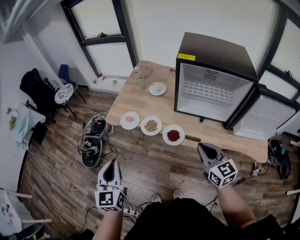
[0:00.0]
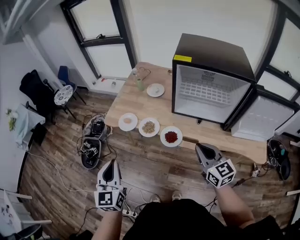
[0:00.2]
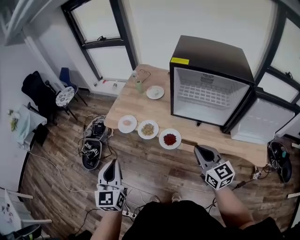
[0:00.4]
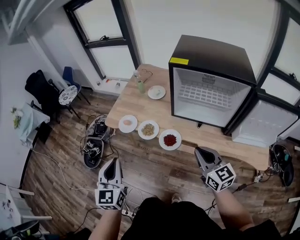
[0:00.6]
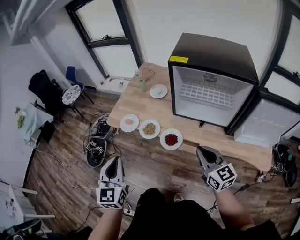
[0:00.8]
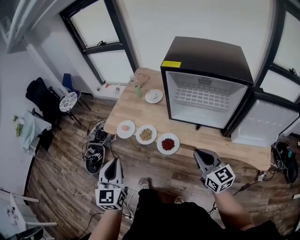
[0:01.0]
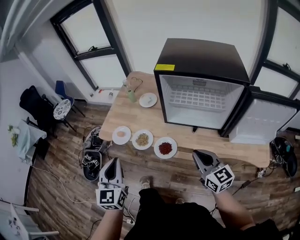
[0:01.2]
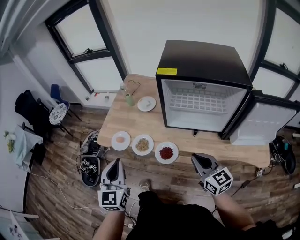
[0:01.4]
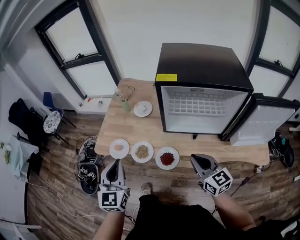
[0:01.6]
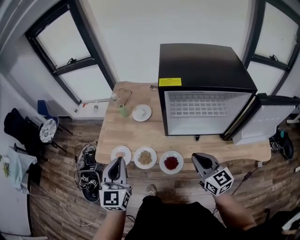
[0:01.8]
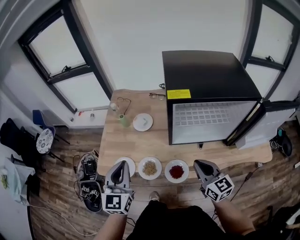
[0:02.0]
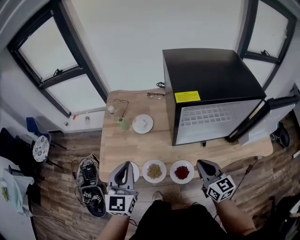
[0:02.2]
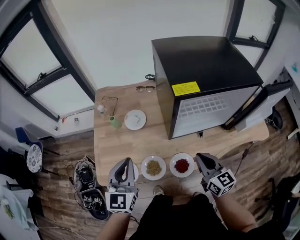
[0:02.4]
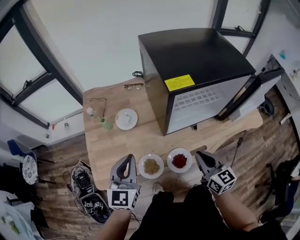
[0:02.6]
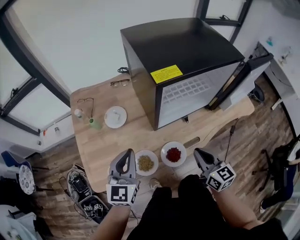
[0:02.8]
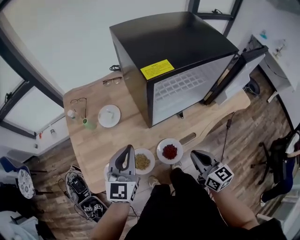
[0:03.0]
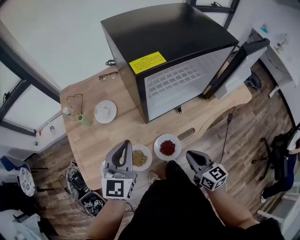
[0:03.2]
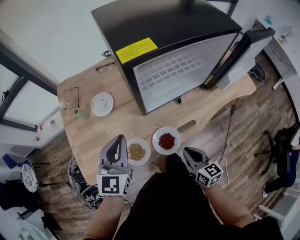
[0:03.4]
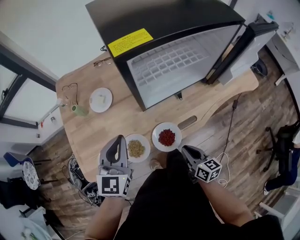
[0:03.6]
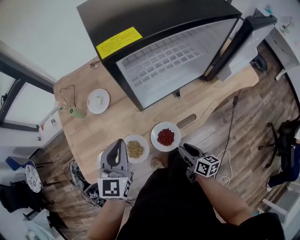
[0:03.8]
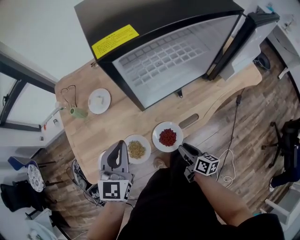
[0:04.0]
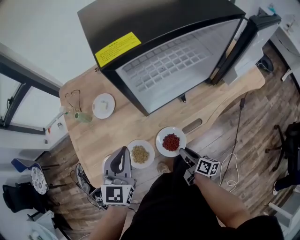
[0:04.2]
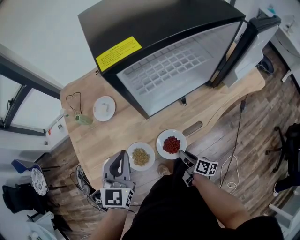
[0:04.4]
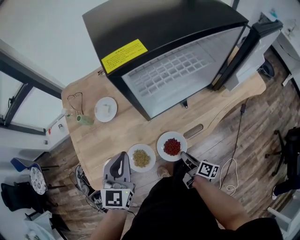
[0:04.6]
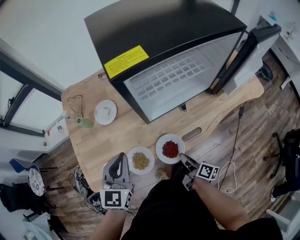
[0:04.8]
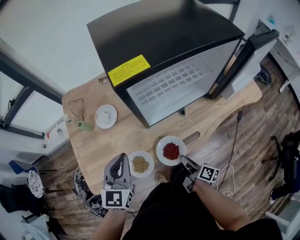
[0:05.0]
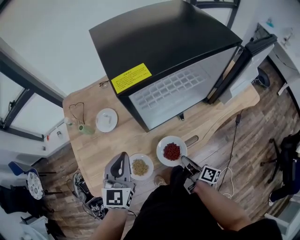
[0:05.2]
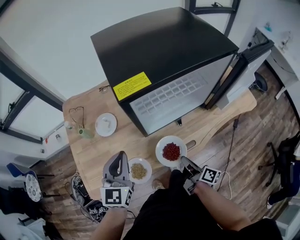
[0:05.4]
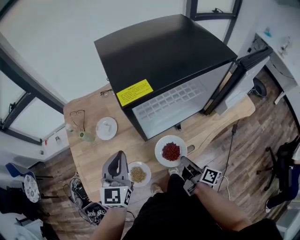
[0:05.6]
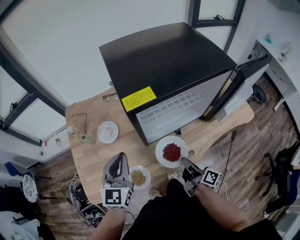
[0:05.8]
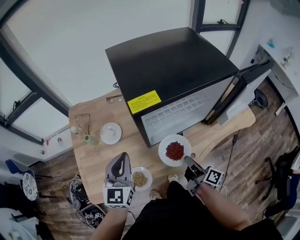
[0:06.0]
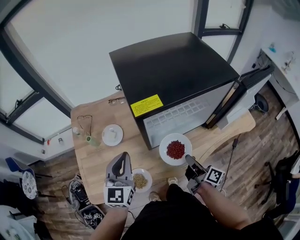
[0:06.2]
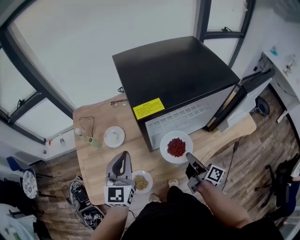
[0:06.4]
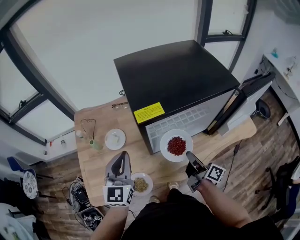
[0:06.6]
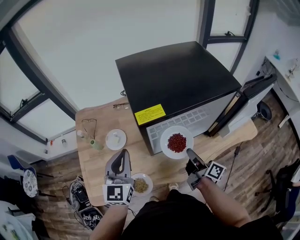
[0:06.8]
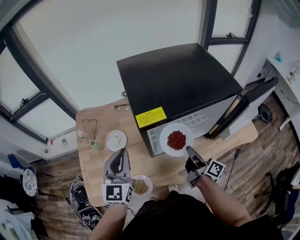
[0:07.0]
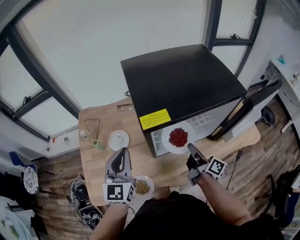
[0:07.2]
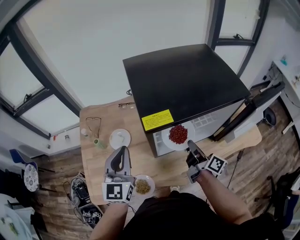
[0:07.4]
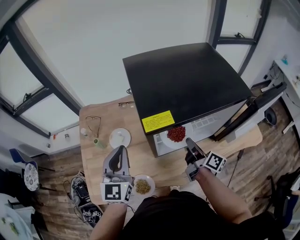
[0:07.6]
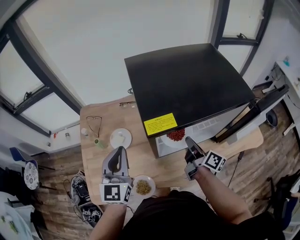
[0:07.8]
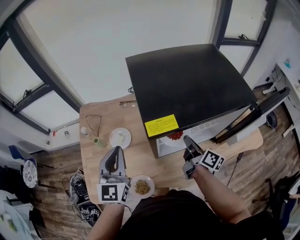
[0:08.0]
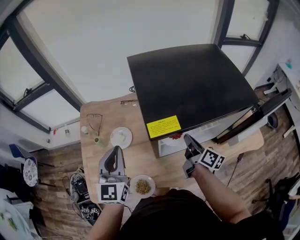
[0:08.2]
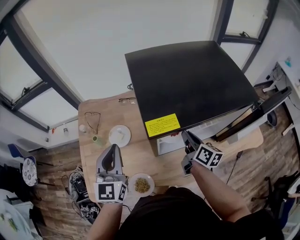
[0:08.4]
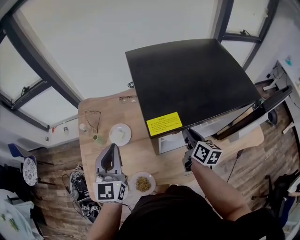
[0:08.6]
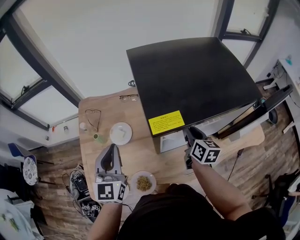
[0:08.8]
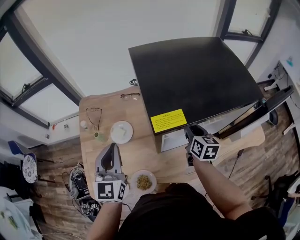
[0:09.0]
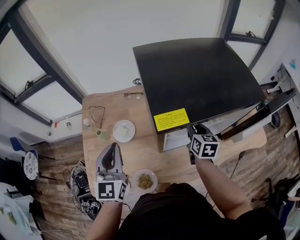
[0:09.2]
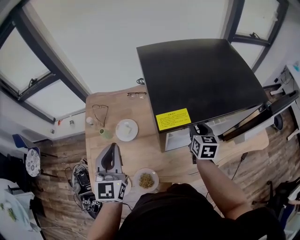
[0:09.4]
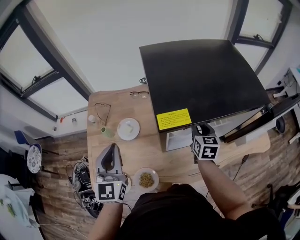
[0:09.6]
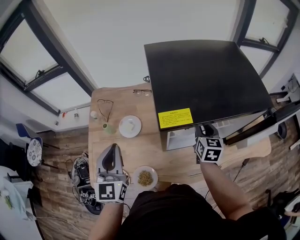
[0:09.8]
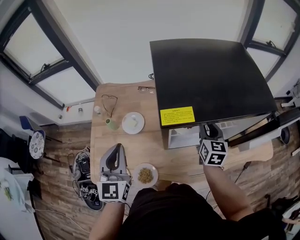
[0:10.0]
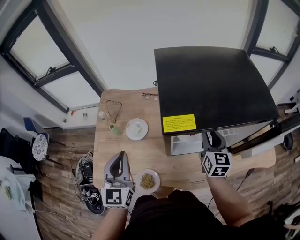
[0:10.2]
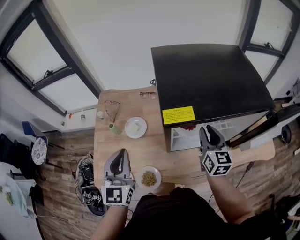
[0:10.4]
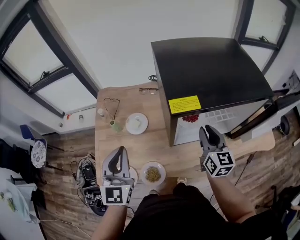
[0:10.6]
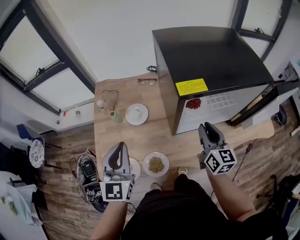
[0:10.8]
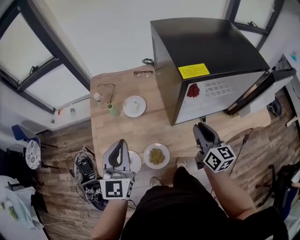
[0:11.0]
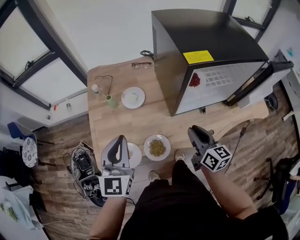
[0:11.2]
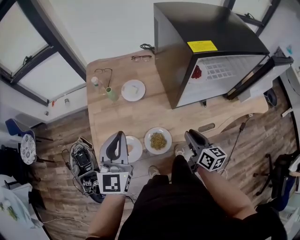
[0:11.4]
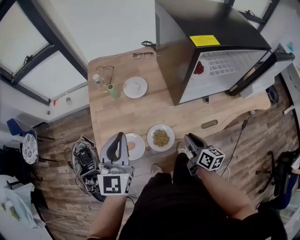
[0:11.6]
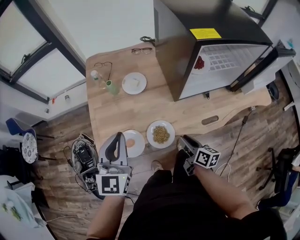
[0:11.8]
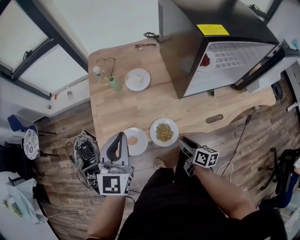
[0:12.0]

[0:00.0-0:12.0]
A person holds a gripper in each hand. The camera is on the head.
0:00.0 to 0:01.6: The right gripper moves forward, about 10 cm. Meanwhile the left gripper goes approximately 20 cm forward and to the right.
0:01.6 to 0:03.0: The right gripper is displaced downward by some 5 cm, and rotates roughly 40 degrees. Meanwhile the left gripper changes place by approximately 20 cm, and changes its angle by roughly 40 degrees.
0:03.0 to 0:04.4: The left gripper heads downward, covering approximately 5 cm. The right gripper is displaced downward by approximately 25 cm, twists some 50 degrees clockwise, seen from behind, and opens.
0:04.4 to 0:06.0: The right gripper moves upward and forward, roughly 20 cm, and closes. The left gripper moves upward and forward, roughly 10 cm.
0:06.0 to 0:07.6: The left gripper is displaced upward and forward by some 10 cm. Meanwhile the right gripper goes about 15 cm forward and upward.
0:07.6 to 0:09.0: The right gripper moves forward, roughly 5 cm, and swivels about 50 degrees.
0:09.0 to 0:10.4: The right gripper is displaced upward by some 5 cm, and changes its angle by some 20 degrees. Meanwhile the left gripper shifts approximately 5 cm backward.
0:10.4 to 0:12.0: The right gripper moves backward, downward and to the left, some 40 cm, and turns by approximately 50 degrees, while the left gripper is displaced backward, to the left and downward by approximately 15 cm.

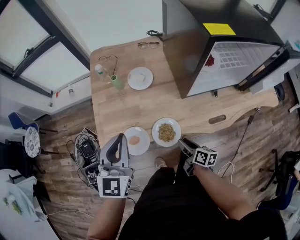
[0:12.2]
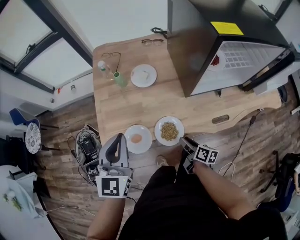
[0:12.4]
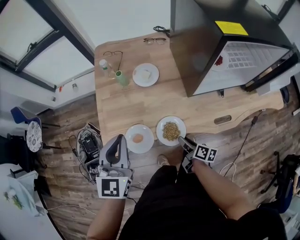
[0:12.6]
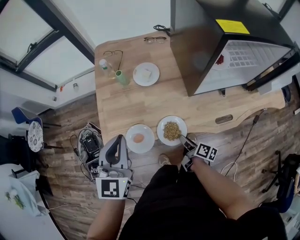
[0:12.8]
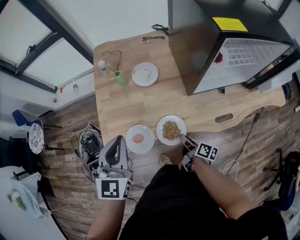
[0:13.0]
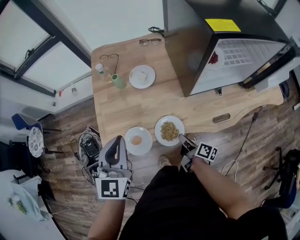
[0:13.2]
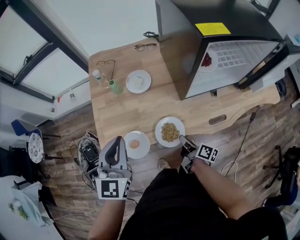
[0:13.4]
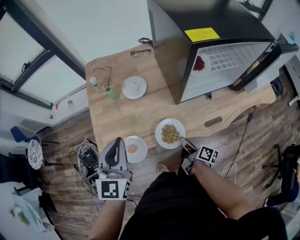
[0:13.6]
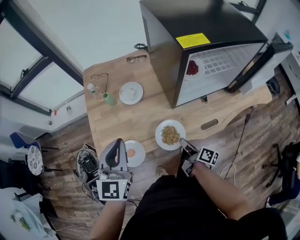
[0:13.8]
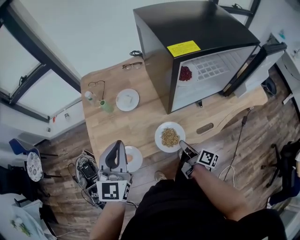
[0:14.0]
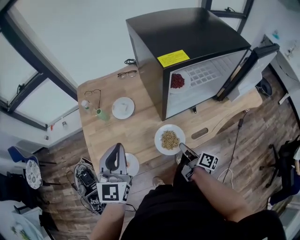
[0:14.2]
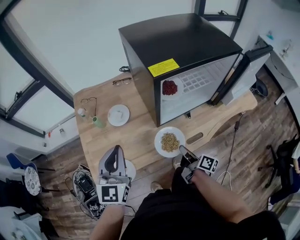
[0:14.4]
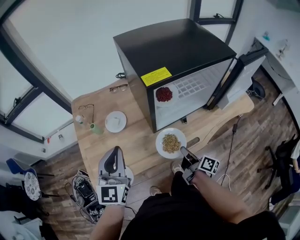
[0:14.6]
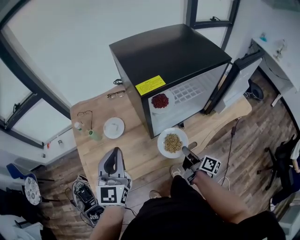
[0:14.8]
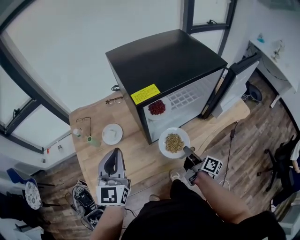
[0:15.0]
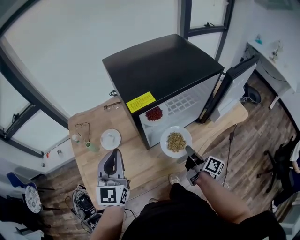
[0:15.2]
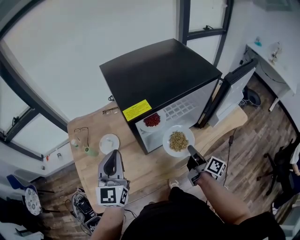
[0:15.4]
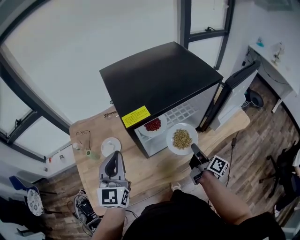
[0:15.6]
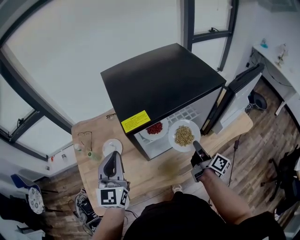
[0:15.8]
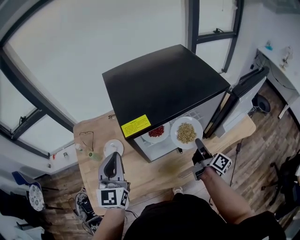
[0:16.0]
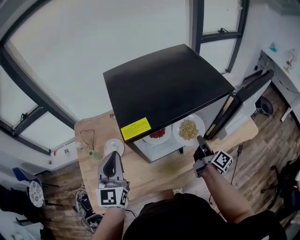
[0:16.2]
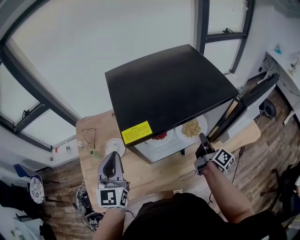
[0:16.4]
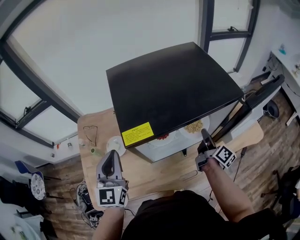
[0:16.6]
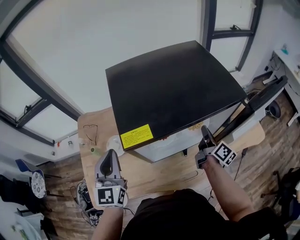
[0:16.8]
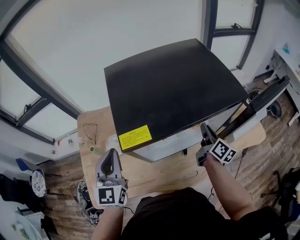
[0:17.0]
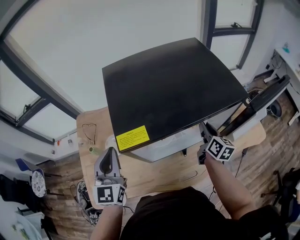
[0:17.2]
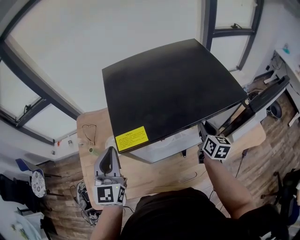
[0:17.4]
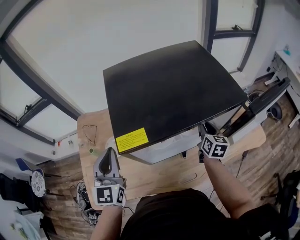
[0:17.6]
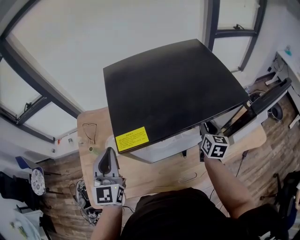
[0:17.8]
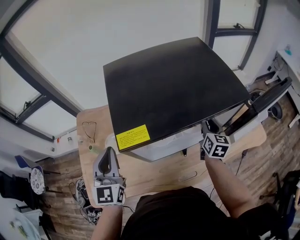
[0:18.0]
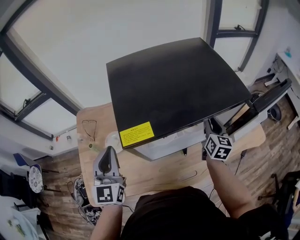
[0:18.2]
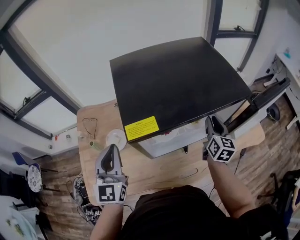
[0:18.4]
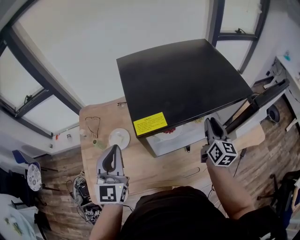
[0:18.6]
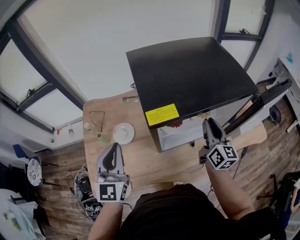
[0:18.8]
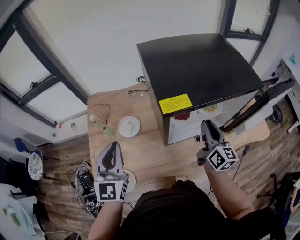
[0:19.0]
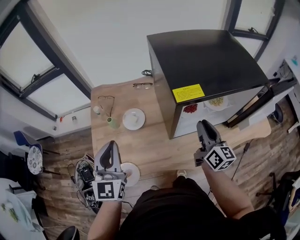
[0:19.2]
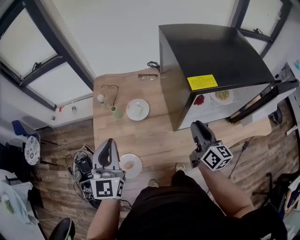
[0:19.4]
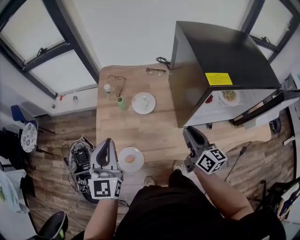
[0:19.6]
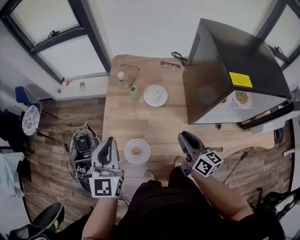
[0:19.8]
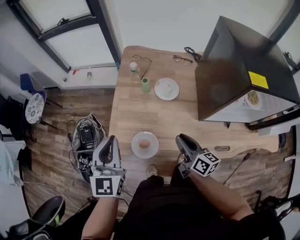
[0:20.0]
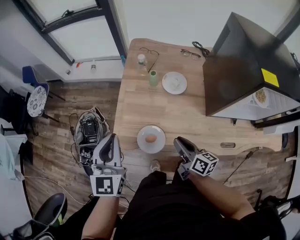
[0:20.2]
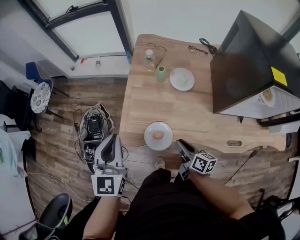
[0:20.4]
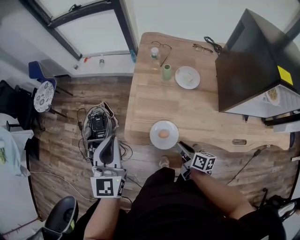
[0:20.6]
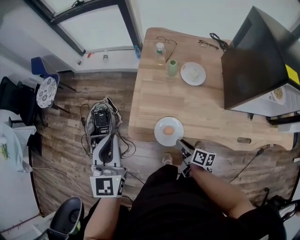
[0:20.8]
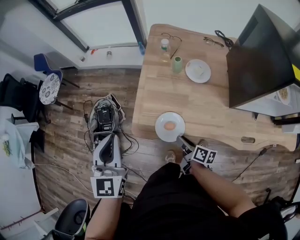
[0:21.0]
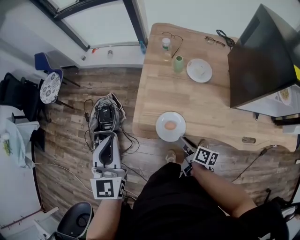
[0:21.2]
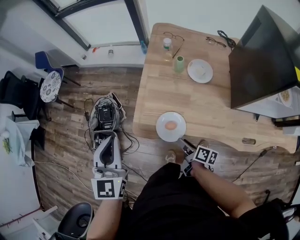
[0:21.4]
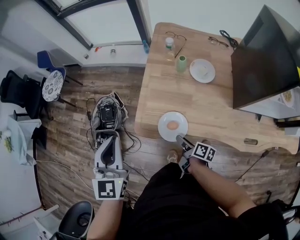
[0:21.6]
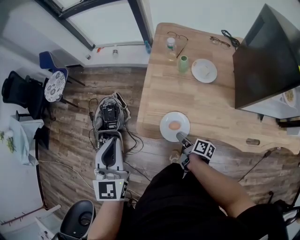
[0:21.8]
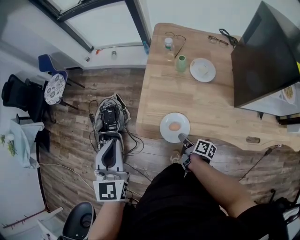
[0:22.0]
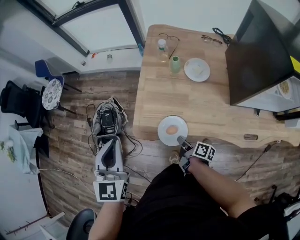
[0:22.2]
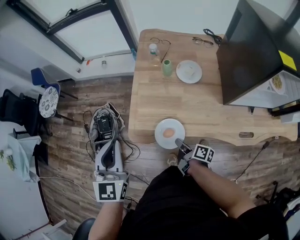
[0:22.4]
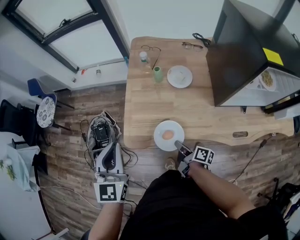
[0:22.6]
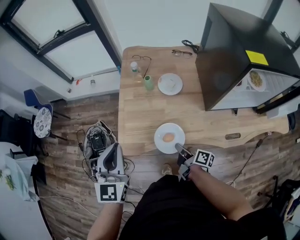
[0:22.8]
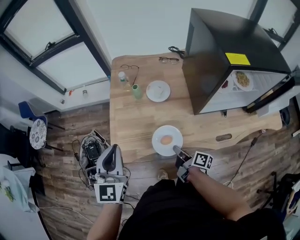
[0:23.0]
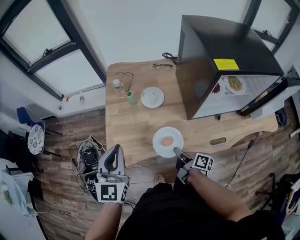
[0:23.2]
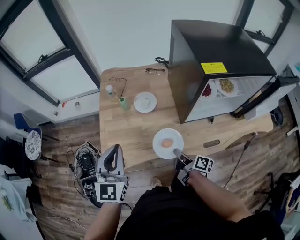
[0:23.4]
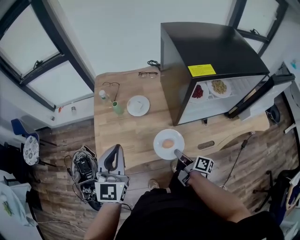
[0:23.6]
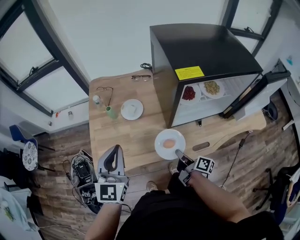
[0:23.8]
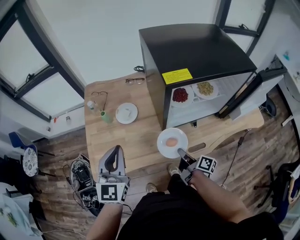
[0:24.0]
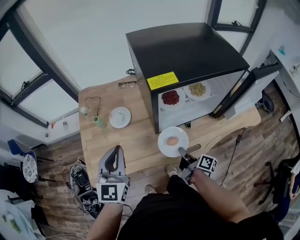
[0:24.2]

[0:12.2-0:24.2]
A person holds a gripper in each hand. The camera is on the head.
0:12.2 to 0:13.8: The right gripper changes place by roughly 5 cm, rotates some 20 degrees, and closes its fingers.
0:13.8 to 0:15.2: The left gripper is displaced to the right, forward and upward by approximately 15 cm. Meanwhile the right gripper travels to the right, upward and forward by some 25 cm, and swivels approximately 20 degrees.
0:15.2 to 0:16.6: The right gripper goes roughly 20 cm forward and to the right. The left gripper travels forward by approximately 5 cm.
0:16.6 to 0:18.2: The right gripper goes approximately 5 cm forward, and rolls counterclockwise, seen from behind, by about 50 degrees.
0:18.2 to 0:19.8: The right gripper moves approximately 5 cm upward and comes back, and swivels approximately 50 degrees, while the left gripper ends up roughly 30 cm from where it was.
0:19.8 to 0:21.2: The right gripper shifts roughly 25 cm downward and to the left, and swivels approximately 40 degrees, while the left gripper is displaced to the left by approximately 15 cm.
0:21.2 to 0:22.6: The left gripper is displaced to the right by about 5 cm. The right gripper closes.
0:22.6 to 0:24.2: The two grippers go approximately 30 cm to the right. The right gripper rotates roughly 30 degrees, while the left gripper changes its angle by approximately 20 degrees.
